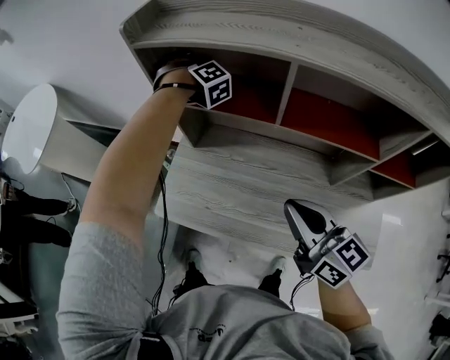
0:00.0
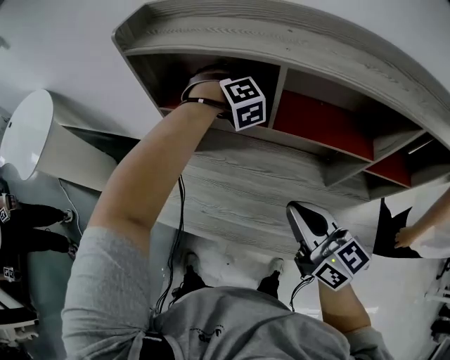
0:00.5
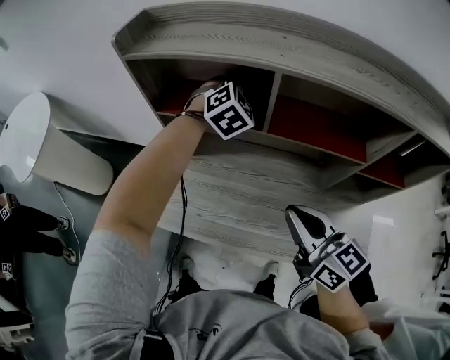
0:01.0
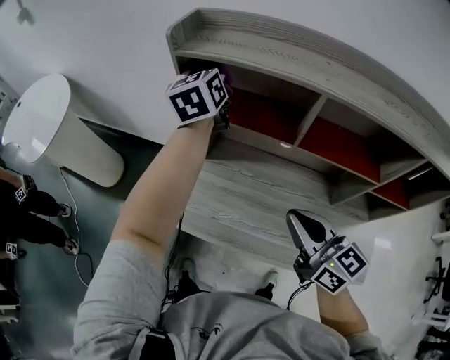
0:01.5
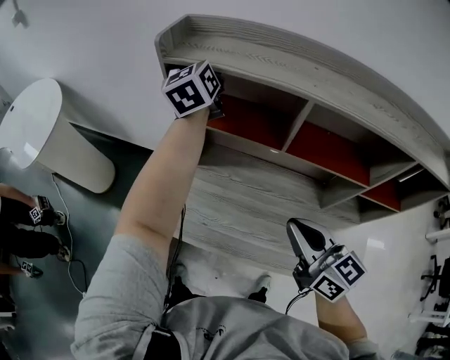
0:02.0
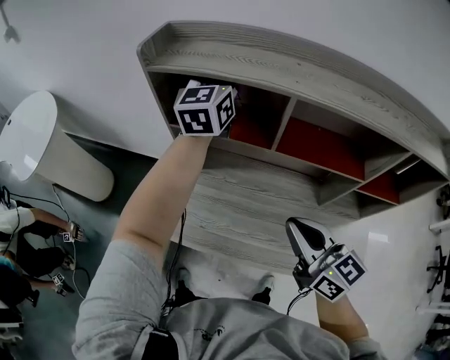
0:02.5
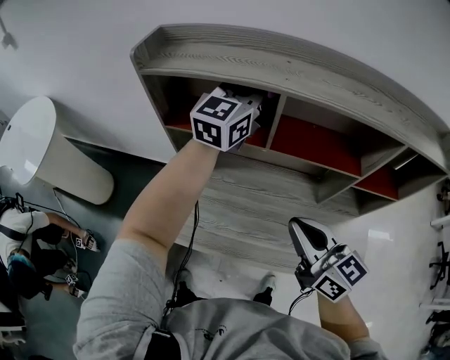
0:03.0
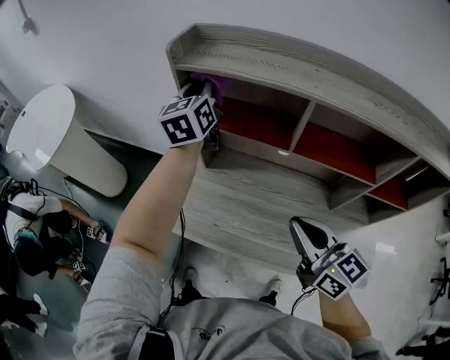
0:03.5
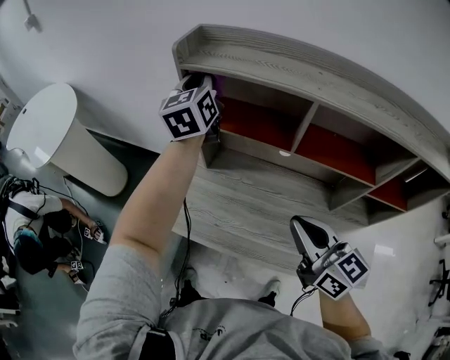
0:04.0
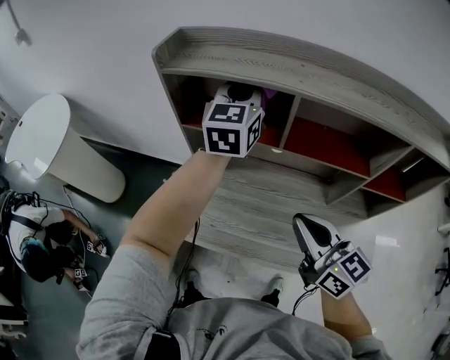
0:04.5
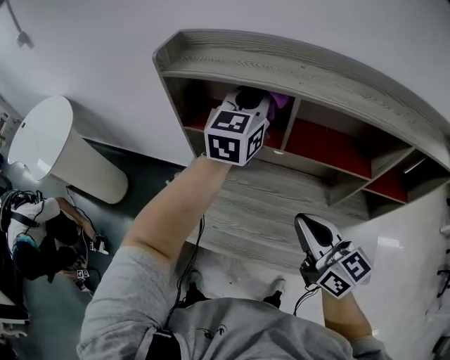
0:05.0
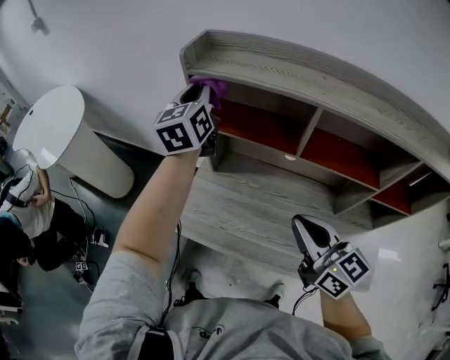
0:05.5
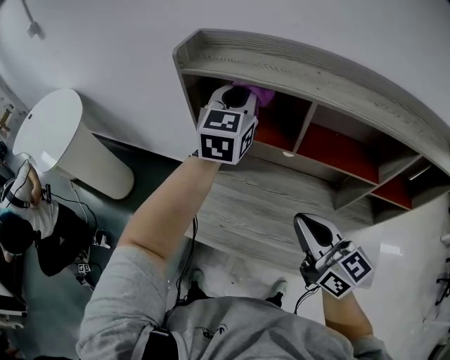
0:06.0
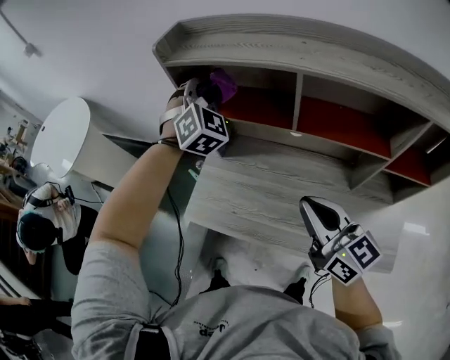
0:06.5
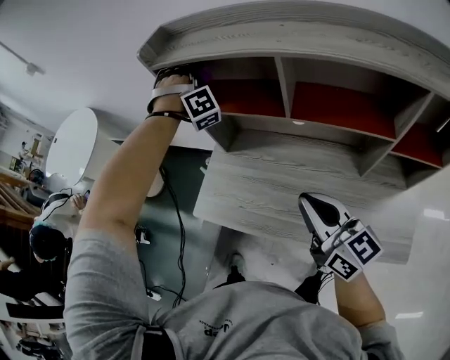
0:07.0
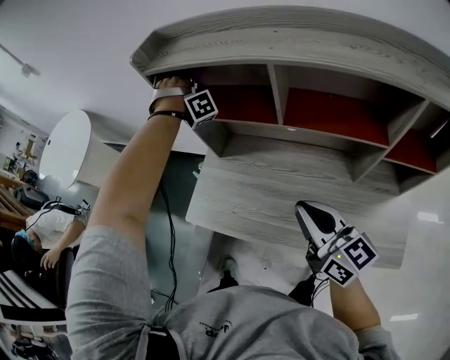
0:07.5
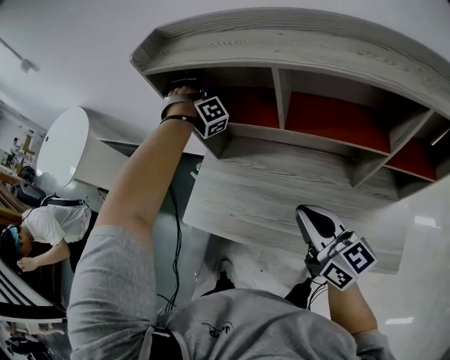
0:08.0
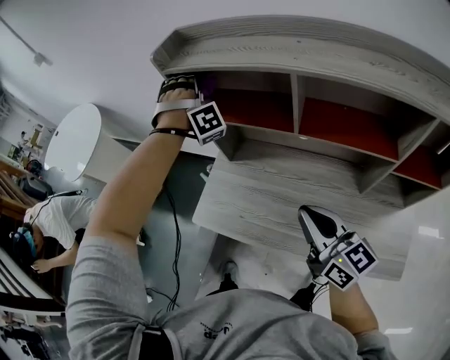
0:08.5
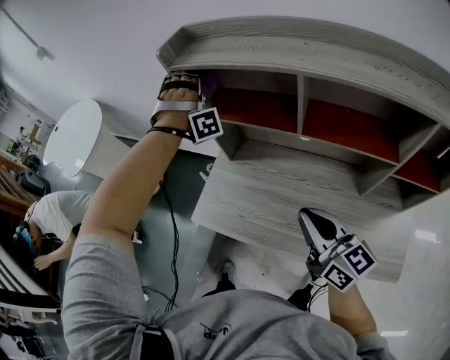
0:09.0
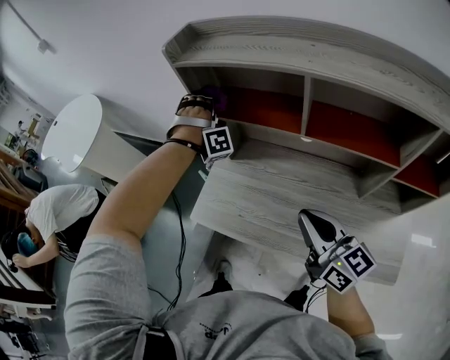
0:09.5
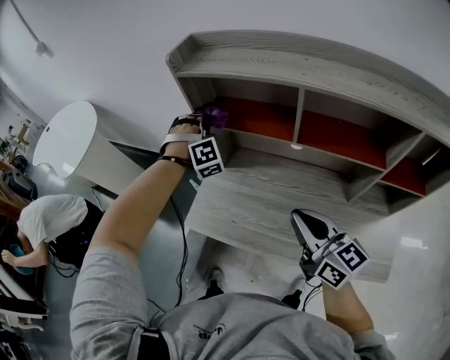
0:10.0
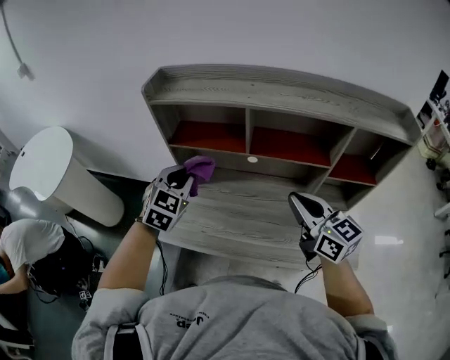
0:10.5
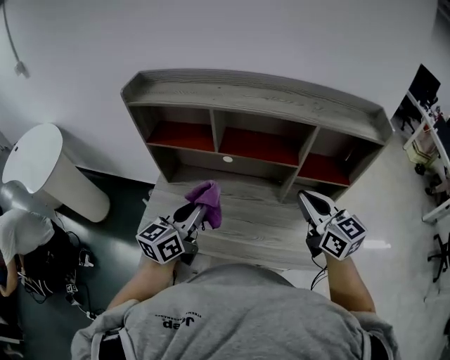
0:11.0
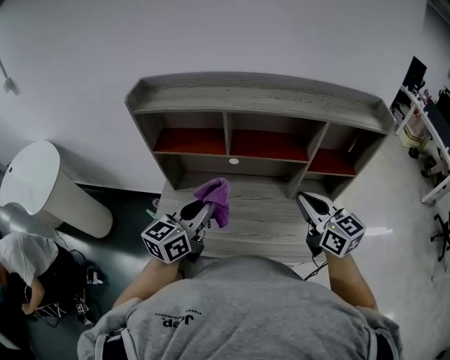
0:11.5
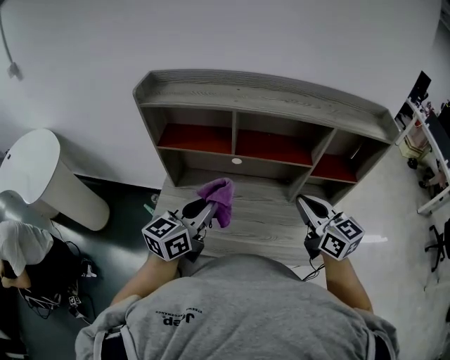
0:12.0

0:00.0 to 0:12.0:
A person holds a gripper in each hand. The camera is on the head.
0:00.0 to 0:02.0: The left gripper shifts some 20 cm upward, and rotates around the line of its fingers by some 100 degrees, counterclockwise from behind.
0:02.0 to 0:04.0: The left gripper goes approximately 5 cm backward, and travels to the right and back again, some 20 cm each way.
0:04.0 to 0:06.0: The left gripper swings left and right, about 20 cm each way, with 2 reversals, and turns by roughly 20 degrees.
0:06.0 to 0:08.0: The left gripper changes place by roughly 20 cm, and twists some 90 degrees clockwise, seen from behind, while the right gripper travels downward by approximately 5 cm.
0:08.0 to 0:10.0: The left gripper moves backward and to the left, some 10 cm, reaches some 10 cm upward, then returns, and rotates approximately 20 degrees.
0:10.0 to 0:12.0: The right gripper changes place by approximately 15 cm, while the left gripper moves roughly 35 cm, and rotates about 120 degrees.

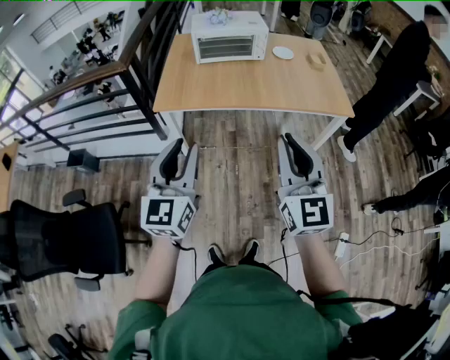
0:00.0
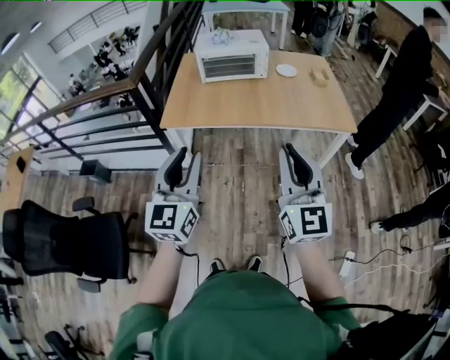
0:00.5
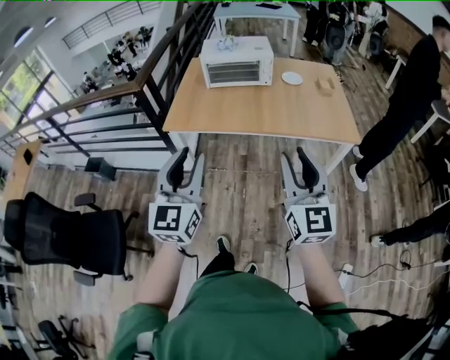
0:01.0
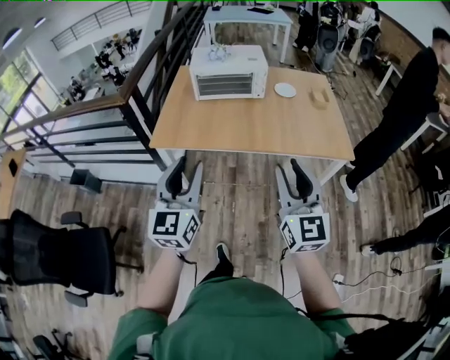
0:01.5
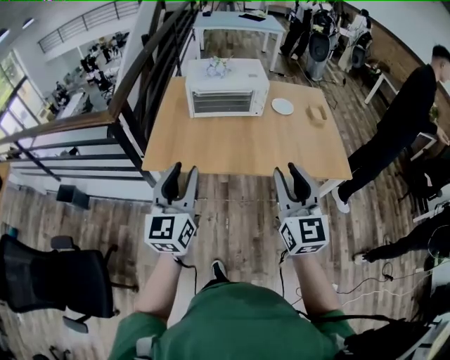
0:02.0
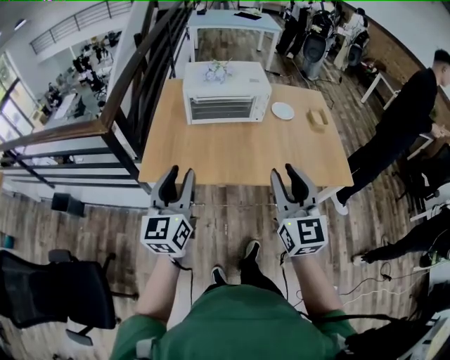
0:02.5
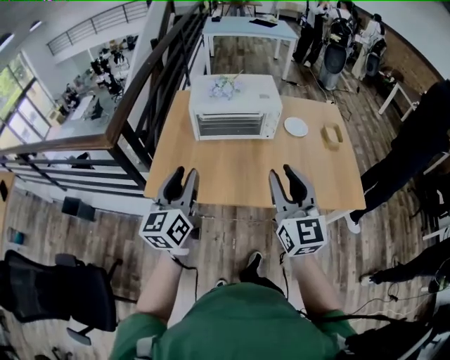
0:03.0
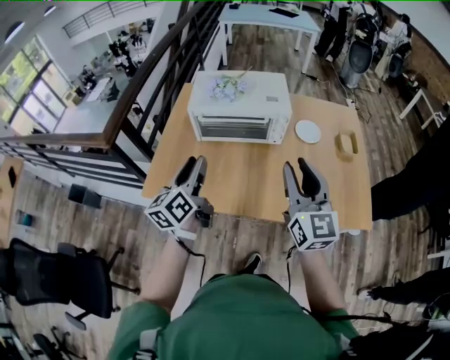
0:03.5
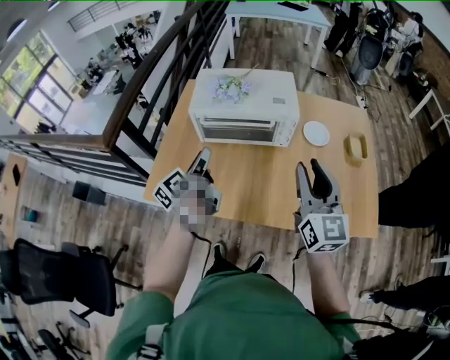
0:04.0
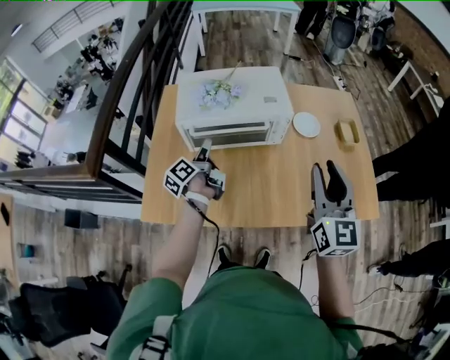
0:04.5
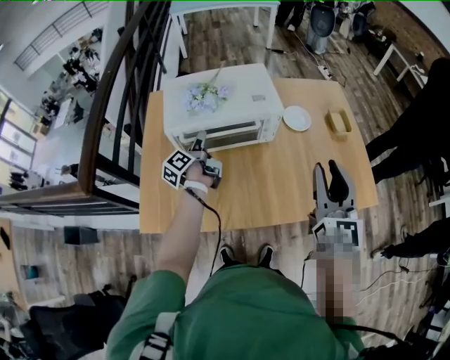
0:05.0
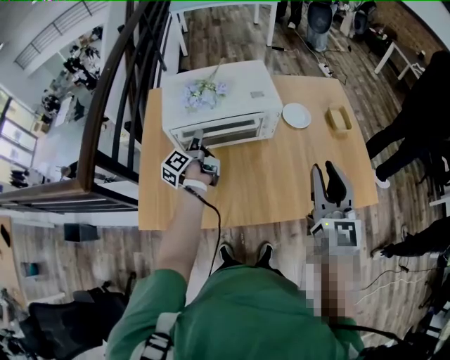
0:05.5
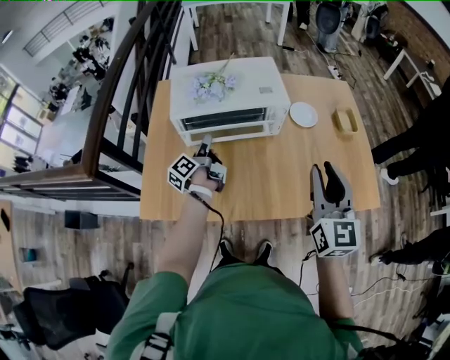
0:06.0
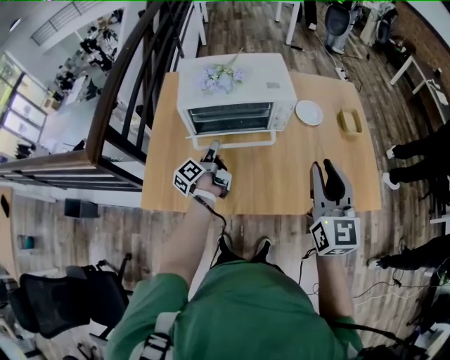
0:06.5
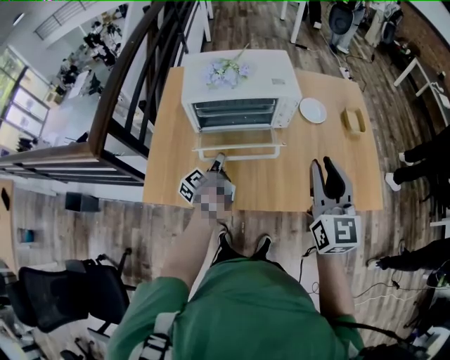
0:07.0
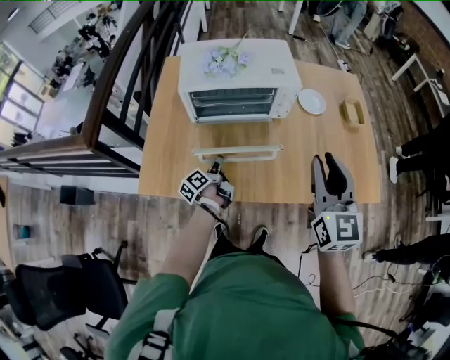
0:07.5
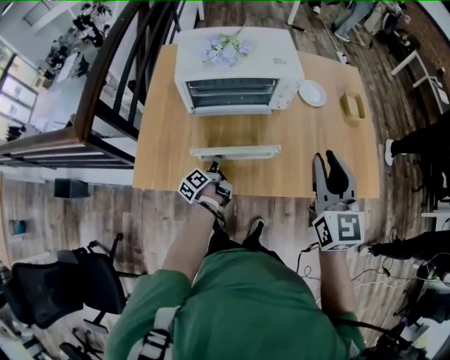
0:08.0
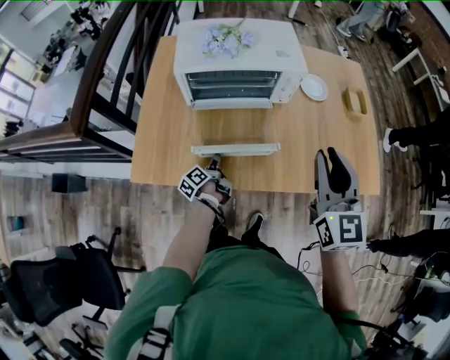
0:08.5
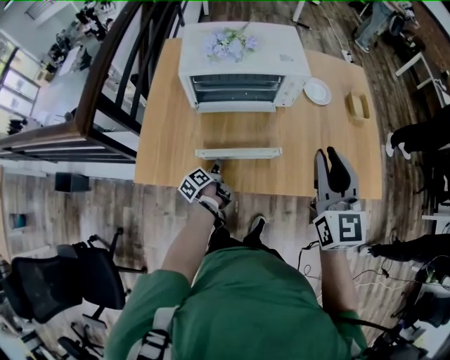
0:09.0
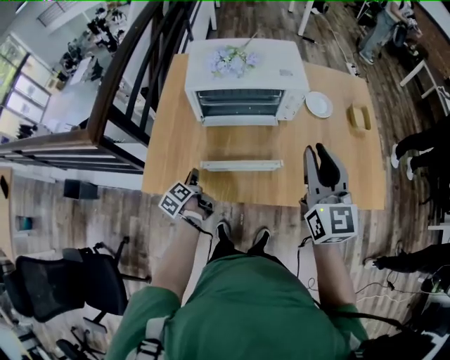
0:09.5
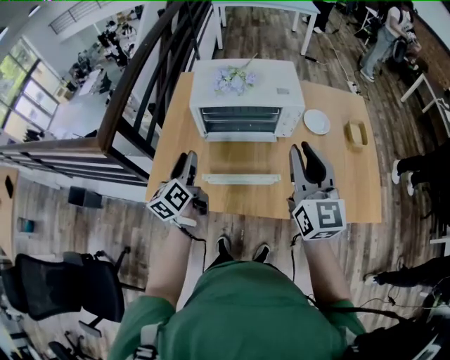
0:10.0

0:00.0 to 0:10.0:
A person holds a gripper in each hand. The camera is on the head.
0:00.0 to 0:02.0: Both grippers travel together forward, approximately 20 cm. The right gripper opens its fingers.
0:02.0 to 0:04.0: The two grippers go about 35 cm forward. The left gripper rolls counterclockwise, seen from behind, by some 50 degrees.
0:04.0 to 0:06.0: The left gripper is displaced forward and downward by about 15 cm.
0:06.0 to 0:08.0: The left gripper moves downward and backward, about 20 cm.
0:08.0 to 0:10.0: The left gripper moves upward, about 25 cm, and swivels about 40 degrees. The right gripper ends up about 10 cm from where it was.

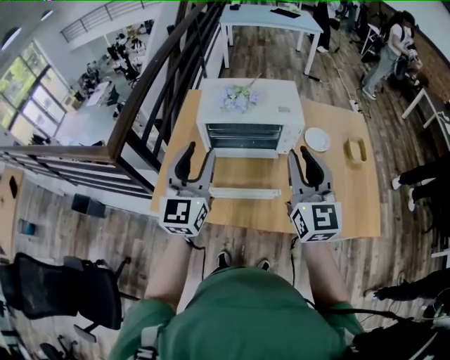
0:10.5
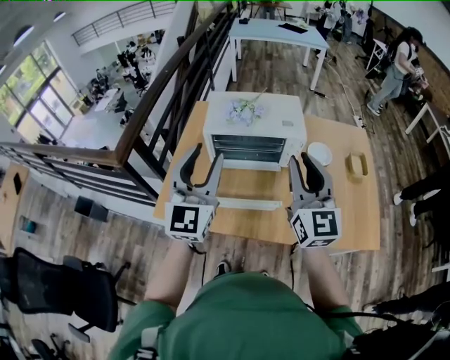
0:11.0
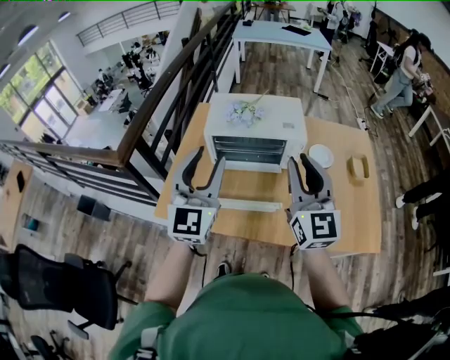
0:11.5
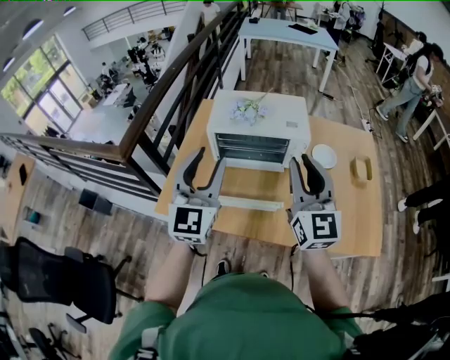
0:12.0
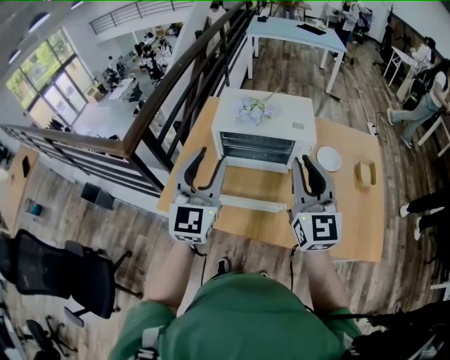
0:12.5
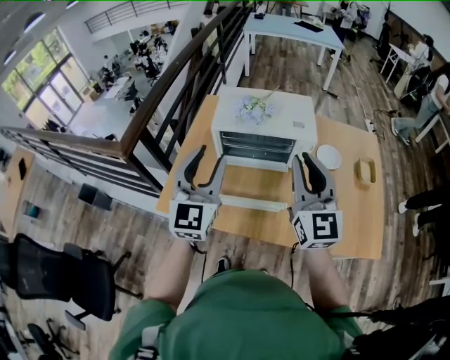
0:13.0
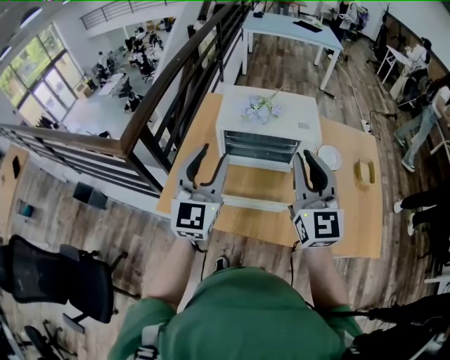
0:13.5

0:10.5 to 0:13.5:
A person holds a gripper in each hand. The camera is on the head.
0:12.0 to 0:13.5: The right gripper moves to the left, some 5 cm. The left gripper shifts by about 5 cm.

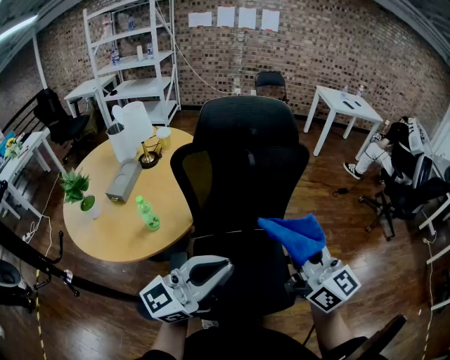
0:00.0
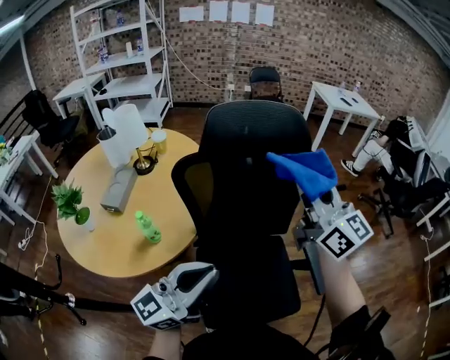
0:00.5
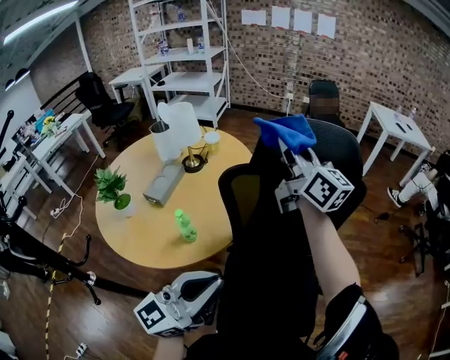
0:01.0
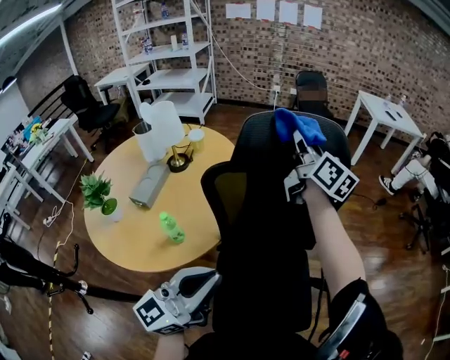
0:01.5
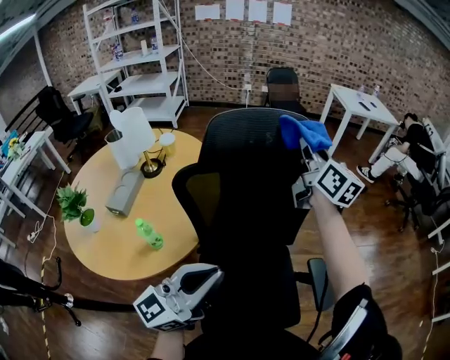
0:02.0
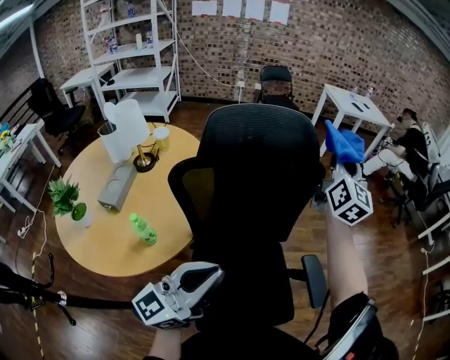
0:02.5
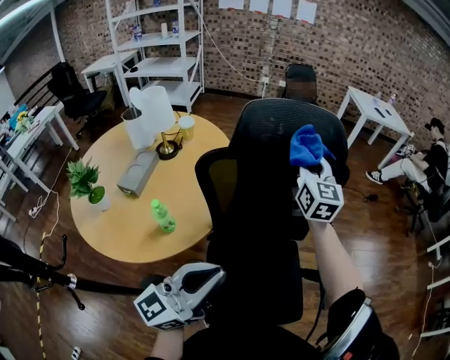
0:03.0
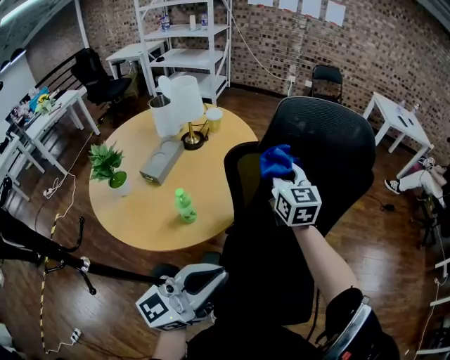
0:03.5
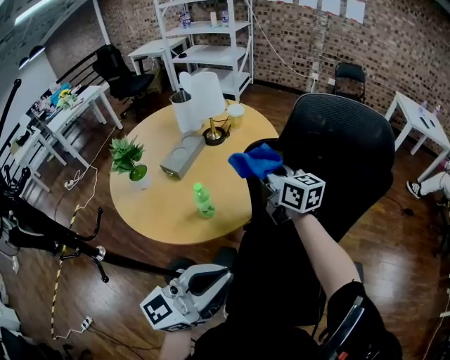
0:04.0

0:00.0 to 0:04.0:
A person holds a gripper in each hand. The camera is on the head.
0:00.0 to 0:02.0: The right gripper heads forward, covering some 35 cm, while the left gripper heads forward and to the left, covering some 10 cm.
0:02.0 to 0:04.0: The left gripper shifts by about 10 cm; the right gripper changes place by roughly 35 cm, and changes its angle by some 40 degrees.
